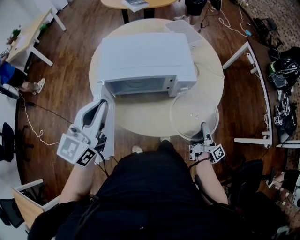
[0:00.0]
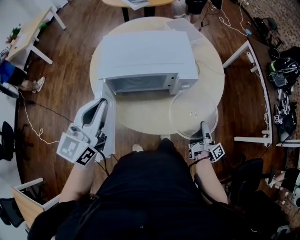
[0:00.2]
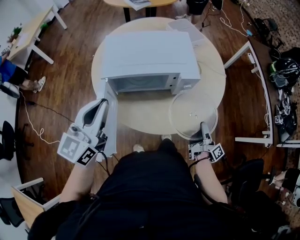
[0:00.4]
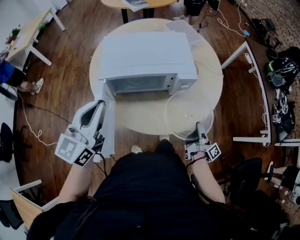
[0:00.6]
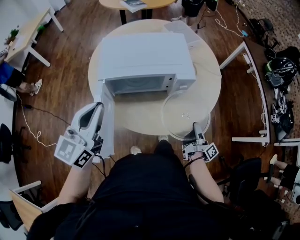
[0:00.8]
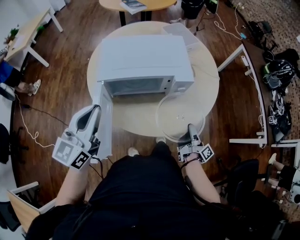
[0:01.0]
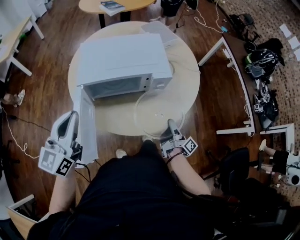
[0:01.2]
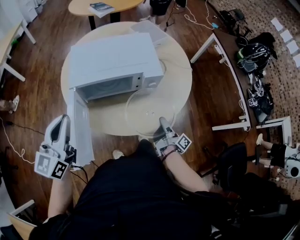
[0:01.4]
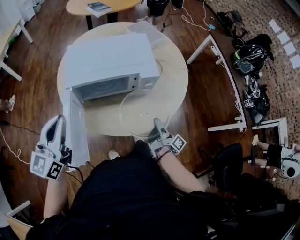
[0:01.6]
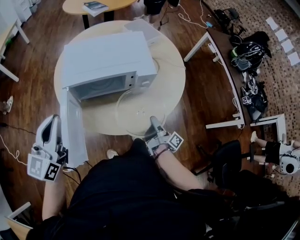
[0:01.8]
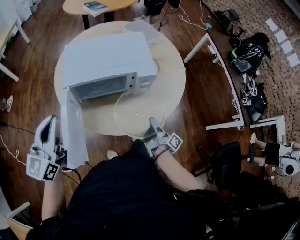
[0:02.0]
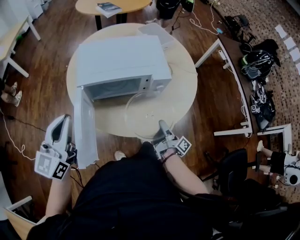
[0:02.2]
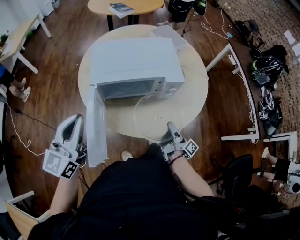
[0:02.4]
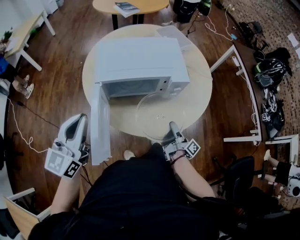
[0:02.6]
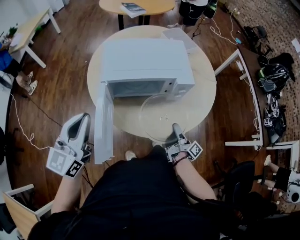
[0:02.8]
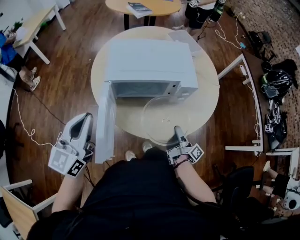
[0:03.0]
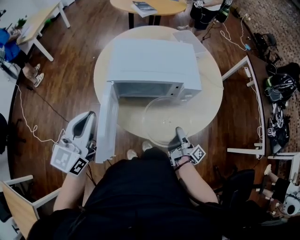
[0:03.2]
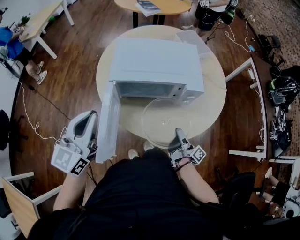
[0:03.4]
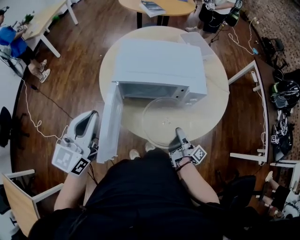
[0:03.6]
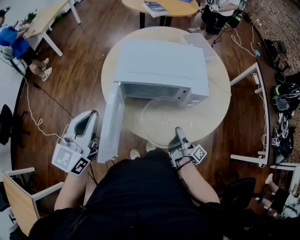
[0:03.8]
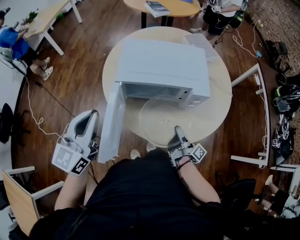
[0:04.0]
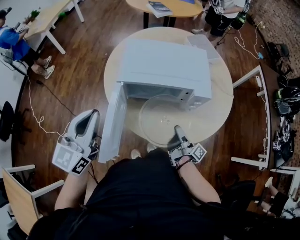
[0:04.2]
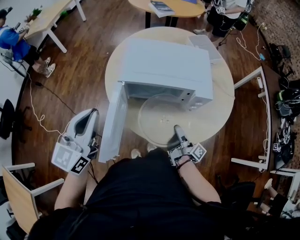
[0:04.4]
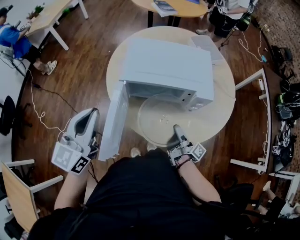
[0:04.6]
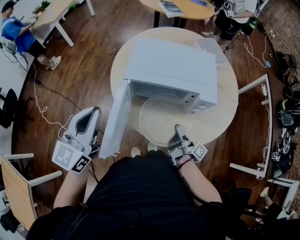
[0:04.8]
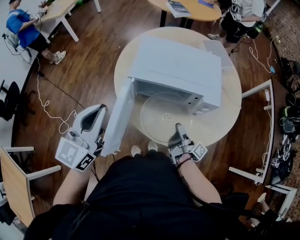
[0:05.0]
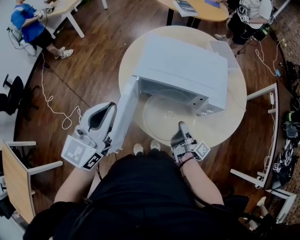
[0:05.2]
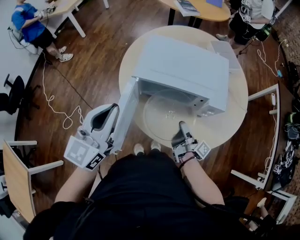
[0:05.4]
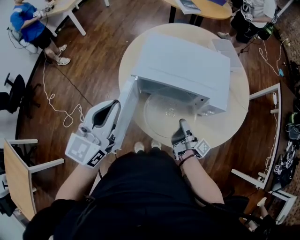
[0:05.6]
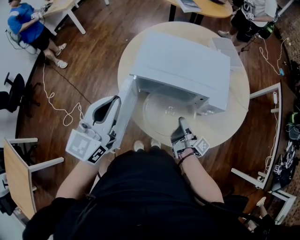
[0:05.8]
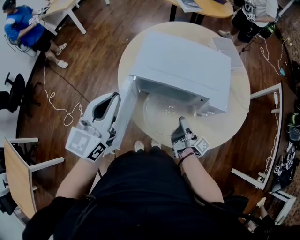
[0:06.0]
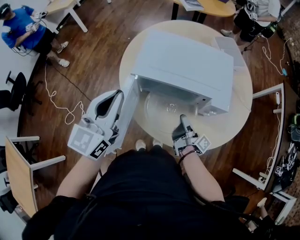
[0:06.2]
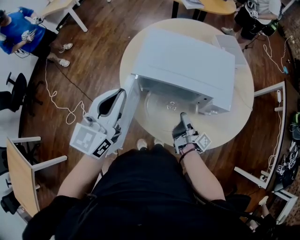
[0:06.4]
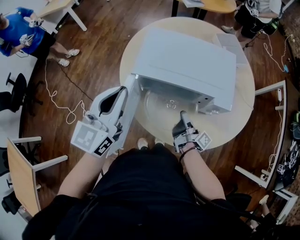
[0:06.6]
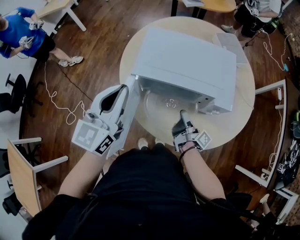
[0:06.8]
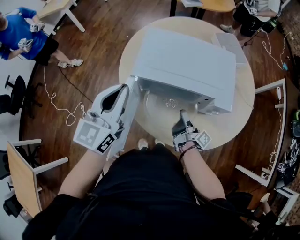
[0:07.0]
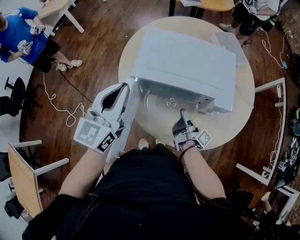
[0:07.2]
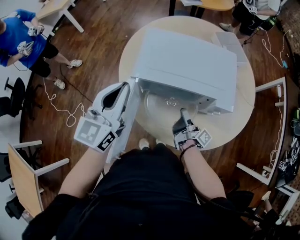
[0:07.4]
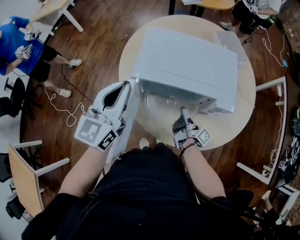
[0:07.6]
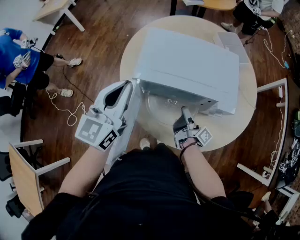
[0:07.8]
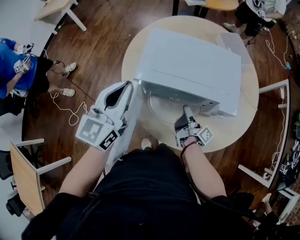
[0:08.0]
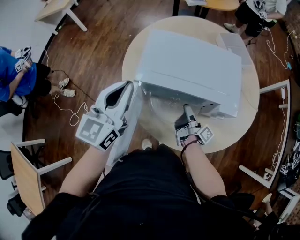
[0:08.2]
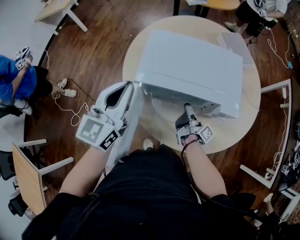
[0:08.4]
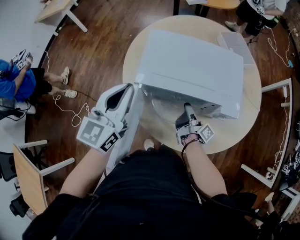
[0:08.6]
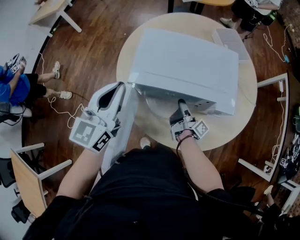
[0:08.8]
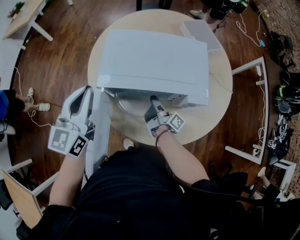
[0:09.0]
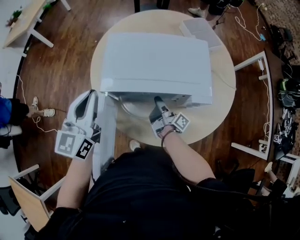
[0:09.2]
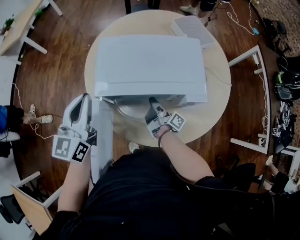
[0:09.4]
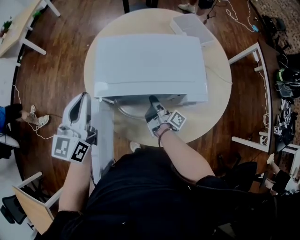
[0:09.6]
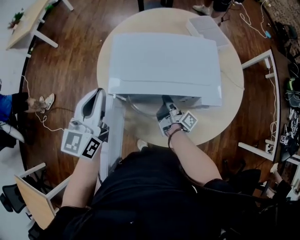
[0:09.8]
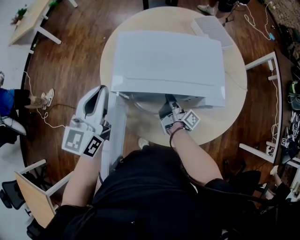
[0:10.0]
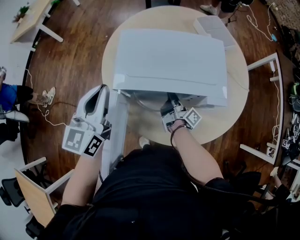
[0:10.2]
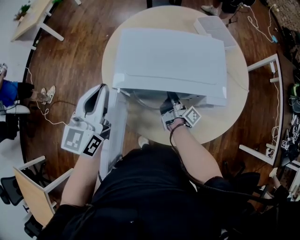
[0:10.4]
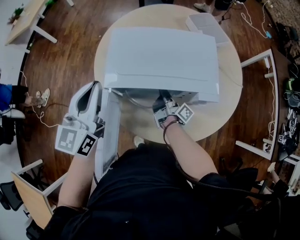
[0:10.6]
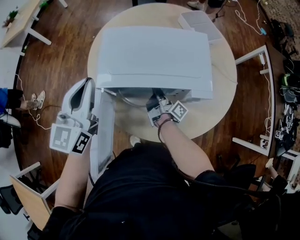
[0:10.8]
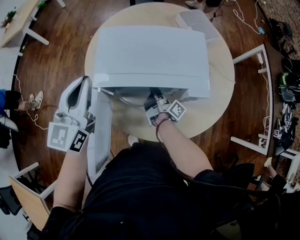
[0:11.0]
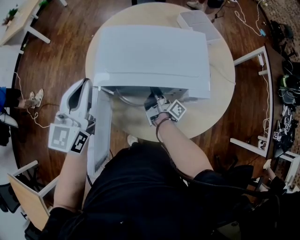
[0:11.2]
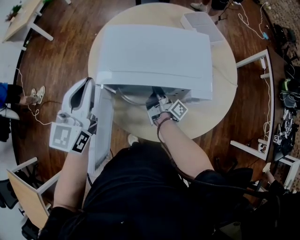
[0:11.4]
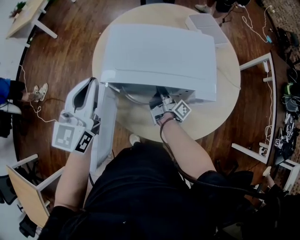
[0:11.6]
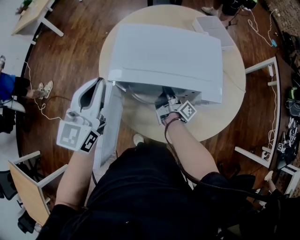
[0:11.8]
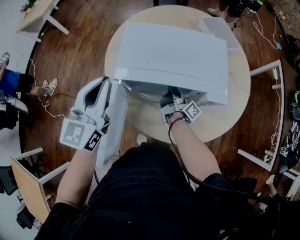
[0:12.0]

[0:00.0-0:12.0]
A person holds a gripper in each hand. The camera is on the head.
0:00.0 to 0:01.6: The left gripper ends up some 5 cm from where it was.
0:04.4 to 0:06.0: The left gripper changes place by about 5 cm.
0:06.0 to 0:07.6: The left gripper moves about 5 cm.

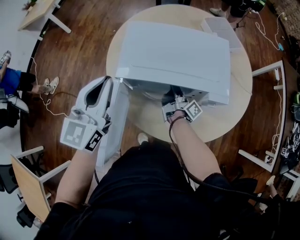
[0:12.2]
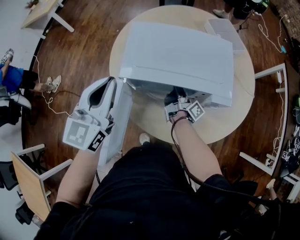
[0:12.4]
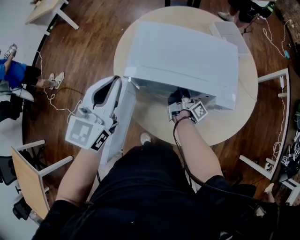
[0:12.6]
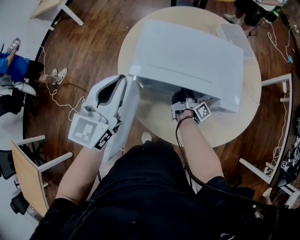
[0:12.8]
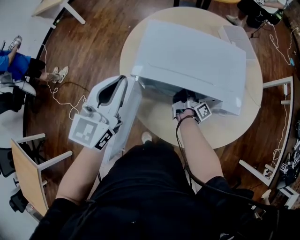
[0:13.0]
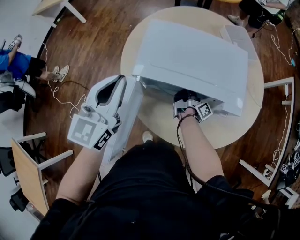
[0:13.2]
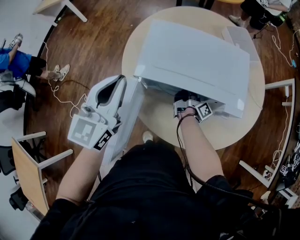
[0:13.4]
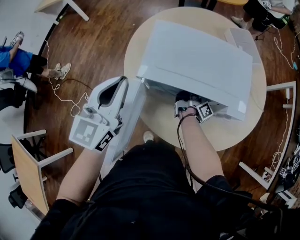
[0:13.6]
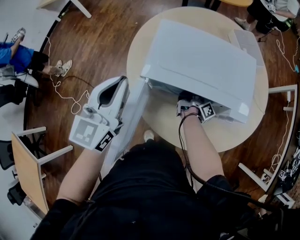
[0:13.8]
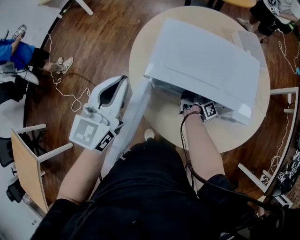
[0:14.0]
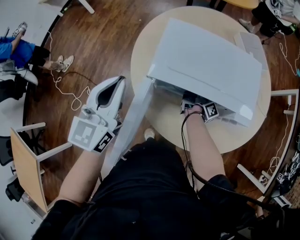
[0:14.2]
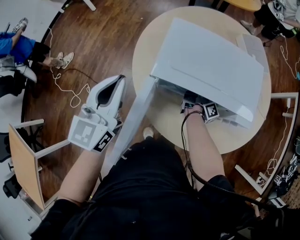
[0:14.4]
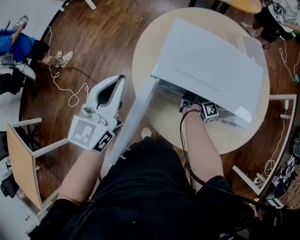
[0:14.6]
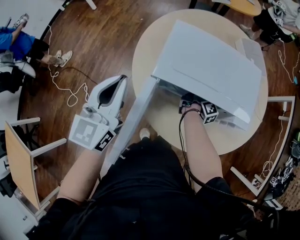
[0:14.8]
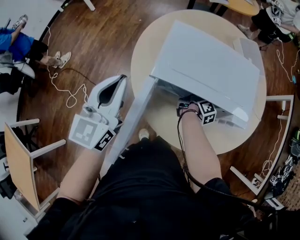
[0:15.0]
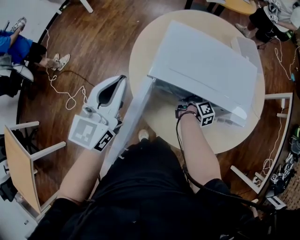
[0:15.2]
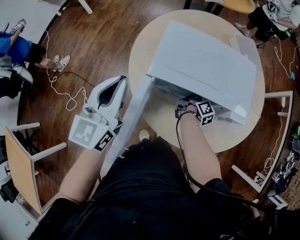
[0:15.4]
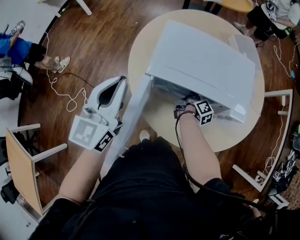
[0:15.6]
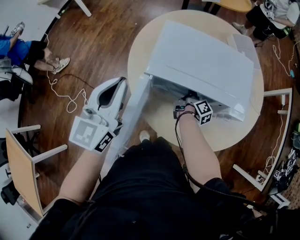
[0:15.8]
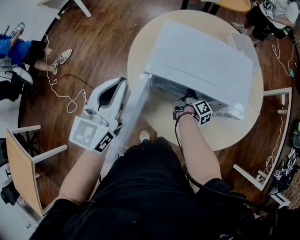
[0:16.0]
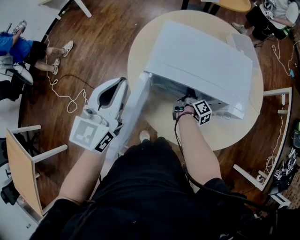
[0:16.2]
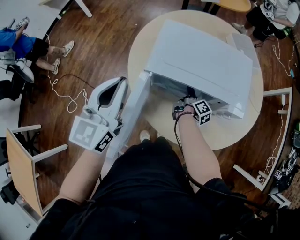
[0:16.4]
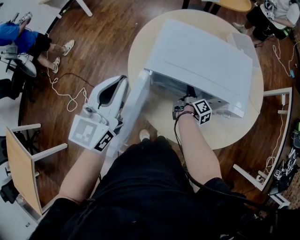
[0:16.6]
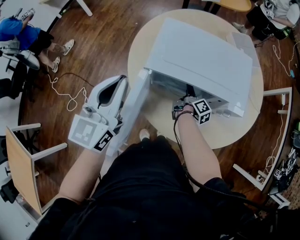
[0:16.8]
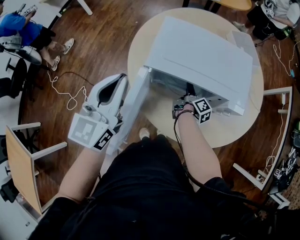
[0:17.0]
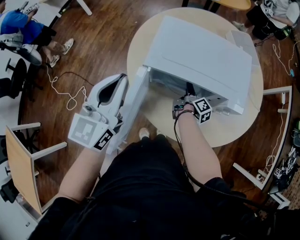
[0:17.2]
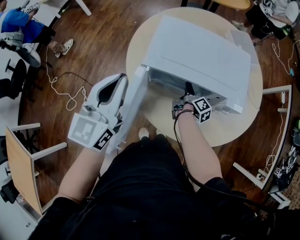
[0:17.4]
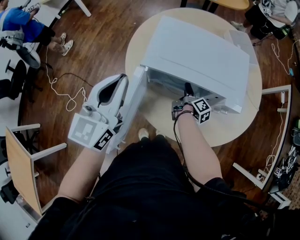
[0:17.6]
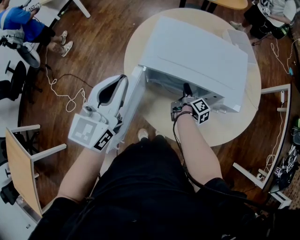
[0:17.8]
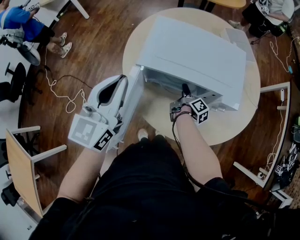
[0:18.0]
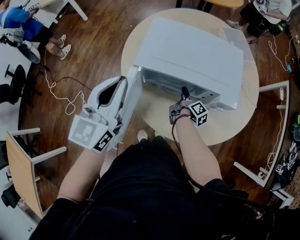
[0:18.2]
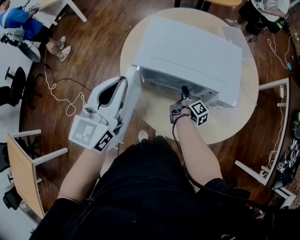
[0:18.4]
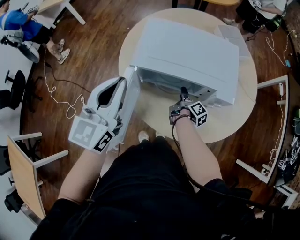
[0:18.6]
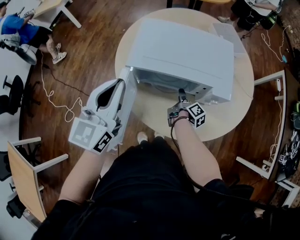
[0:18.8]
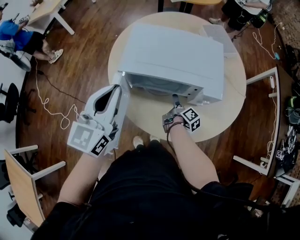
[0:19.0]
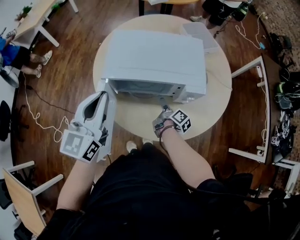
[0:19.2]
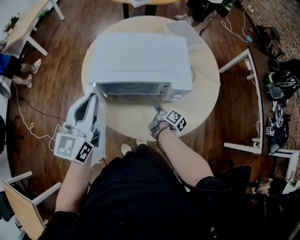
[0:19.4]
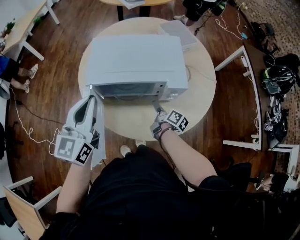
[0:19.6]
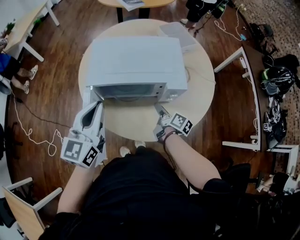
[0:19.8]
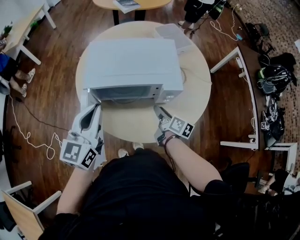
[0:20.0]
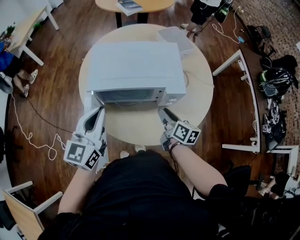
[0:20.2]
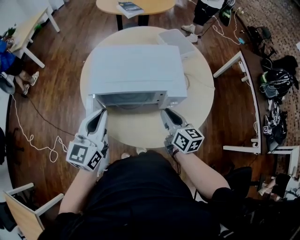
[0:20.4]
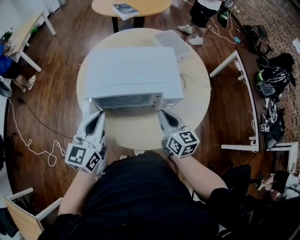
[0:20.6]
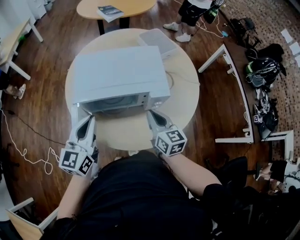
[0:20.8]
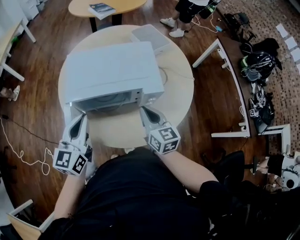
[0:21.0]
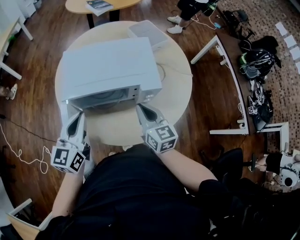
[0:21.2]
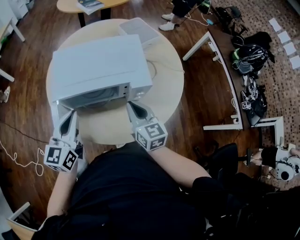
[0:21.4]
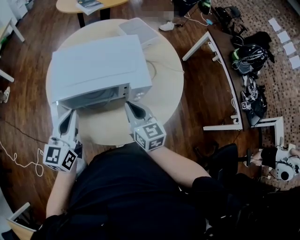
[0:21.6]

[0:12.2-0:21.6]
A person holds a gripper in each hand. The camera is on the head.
0:18.4 to 0:20.0: The left gripper changes place by about 5 cm.
0:20.0 to 0:21.6: The left gripper moves approximately 5 cm.

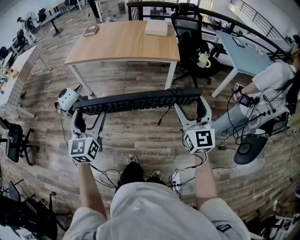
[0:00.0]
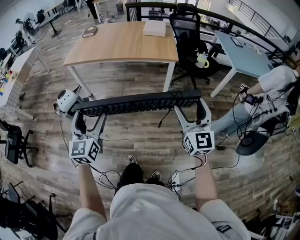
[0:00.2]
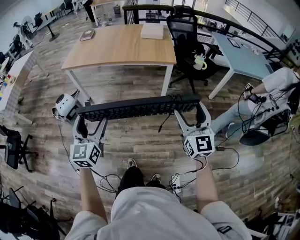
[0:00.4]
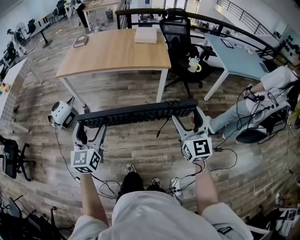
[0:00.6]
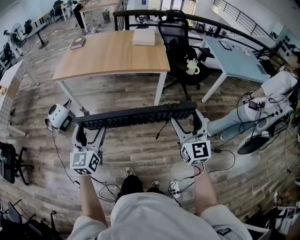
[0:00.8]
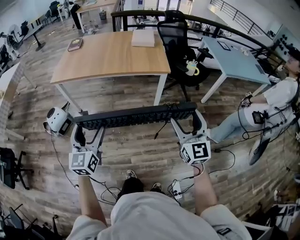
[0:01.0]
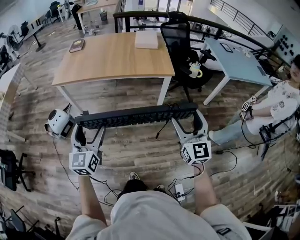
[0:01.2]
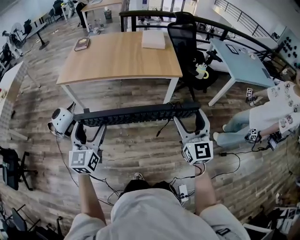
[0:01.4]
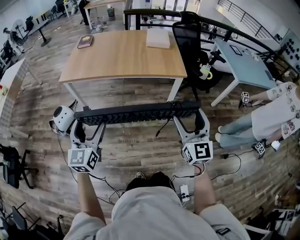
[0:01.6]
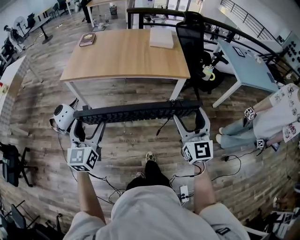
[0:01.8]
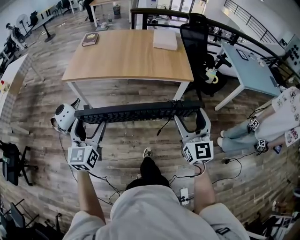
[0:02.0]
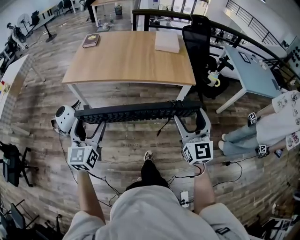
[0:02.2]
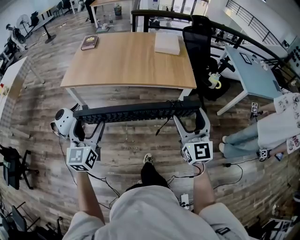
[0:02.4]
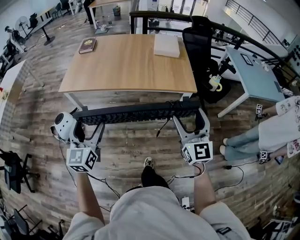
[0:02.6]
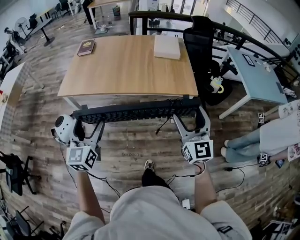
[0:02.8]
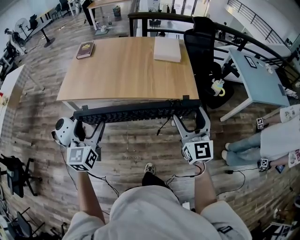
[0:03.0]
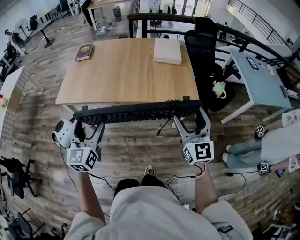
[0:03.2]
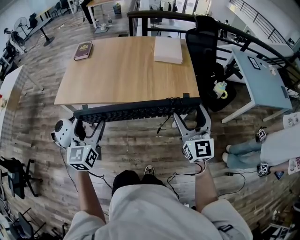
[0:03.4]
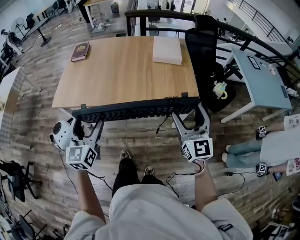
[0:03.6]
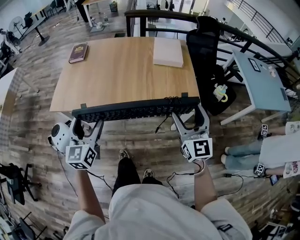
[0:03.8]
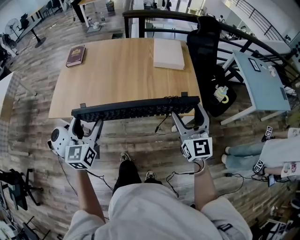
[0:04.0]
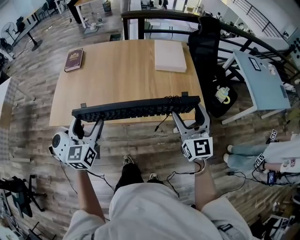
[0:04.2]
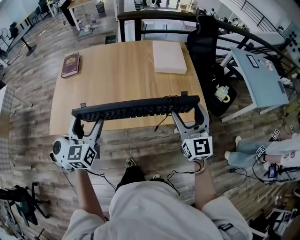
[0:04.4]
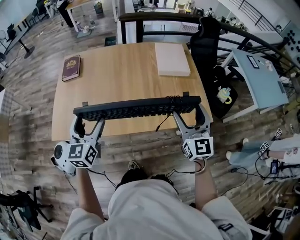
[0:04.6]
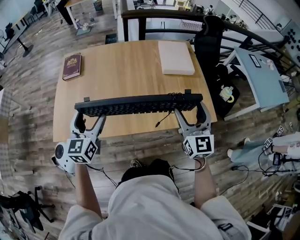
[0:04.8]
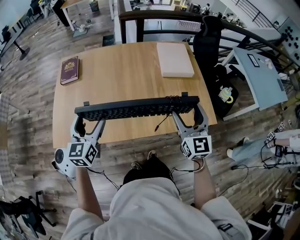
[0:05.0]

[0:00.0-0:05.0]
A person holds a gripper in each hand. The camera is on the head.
0:00.0 to 0:01.6: The grippers both shift forward and to the left by roughly 15 cm.
0:01.6 to 0:03.4: The two grippers go roughly 30 cm forward.
0:03.4 to 0:05.0: The right gripper heads forward and to the left, covering some 30 cm. The left gripper moves forward, roughly 30 cm.
